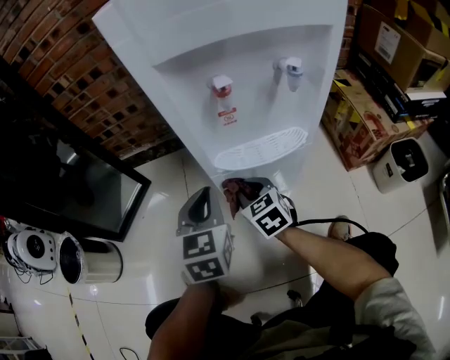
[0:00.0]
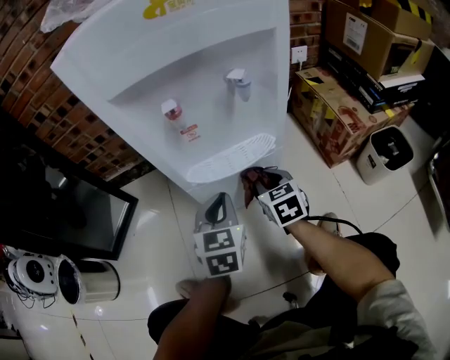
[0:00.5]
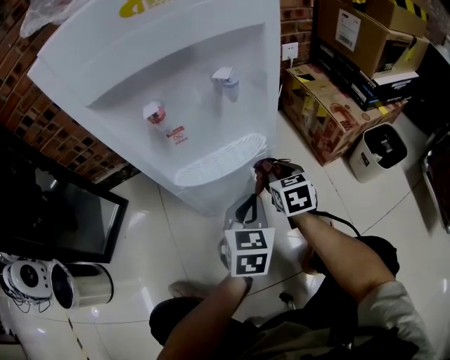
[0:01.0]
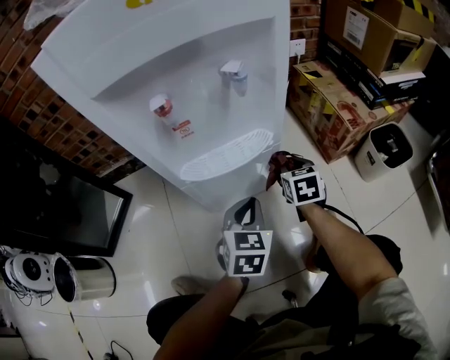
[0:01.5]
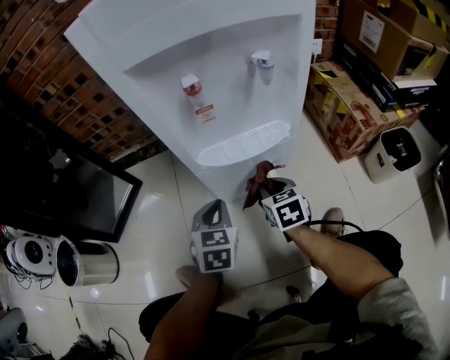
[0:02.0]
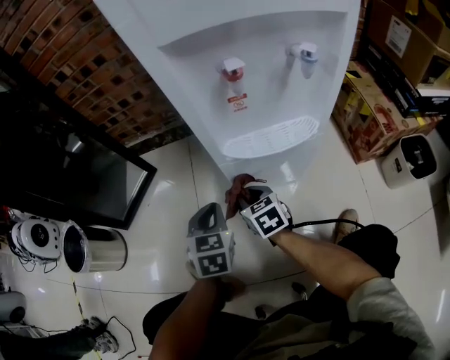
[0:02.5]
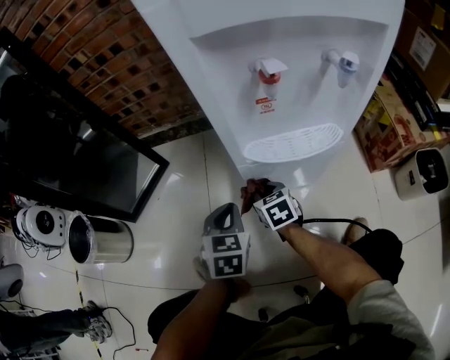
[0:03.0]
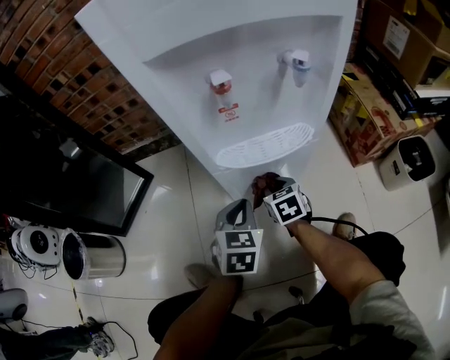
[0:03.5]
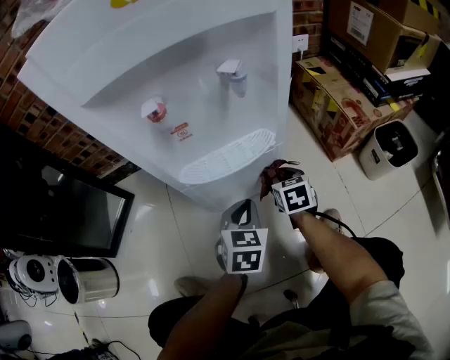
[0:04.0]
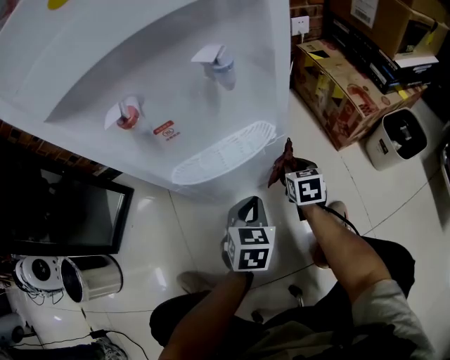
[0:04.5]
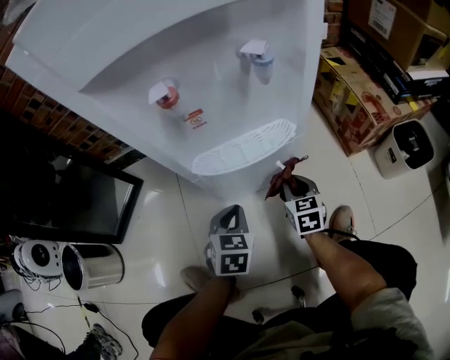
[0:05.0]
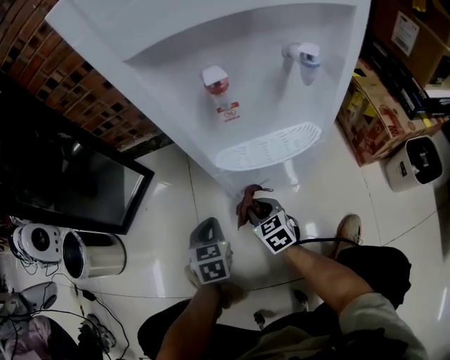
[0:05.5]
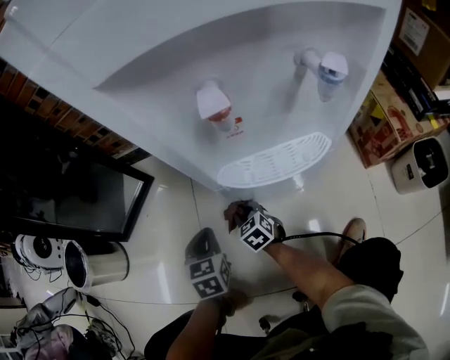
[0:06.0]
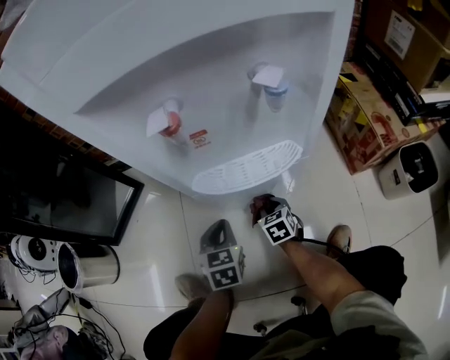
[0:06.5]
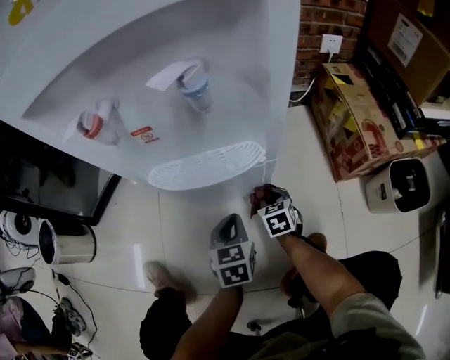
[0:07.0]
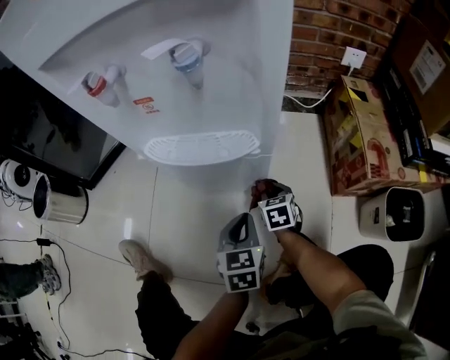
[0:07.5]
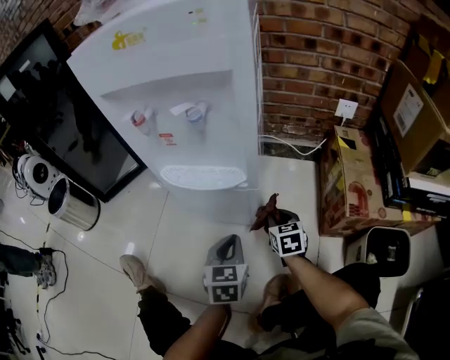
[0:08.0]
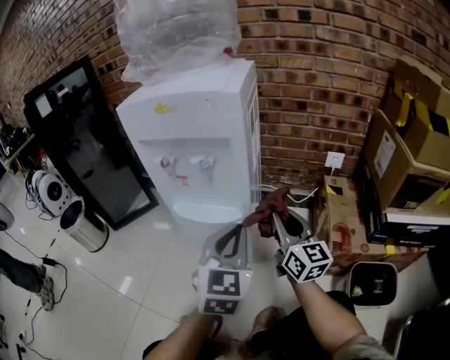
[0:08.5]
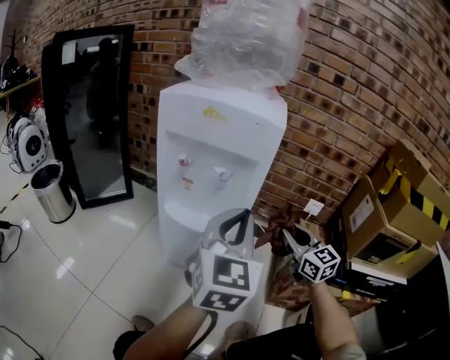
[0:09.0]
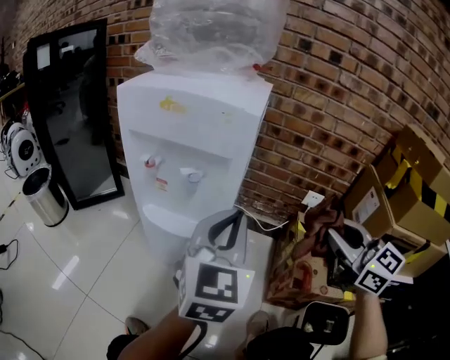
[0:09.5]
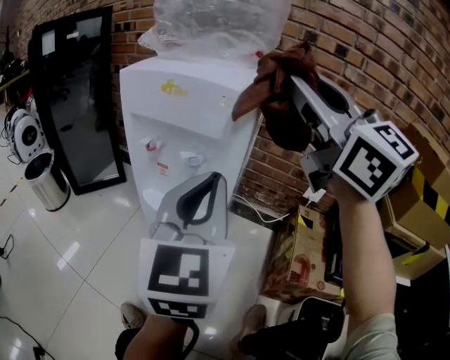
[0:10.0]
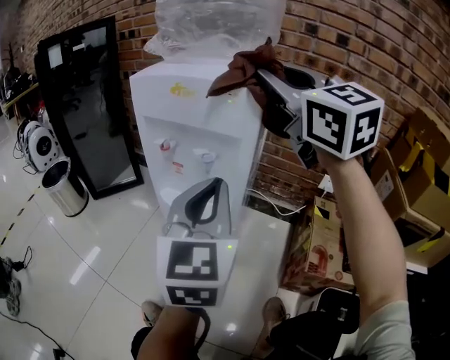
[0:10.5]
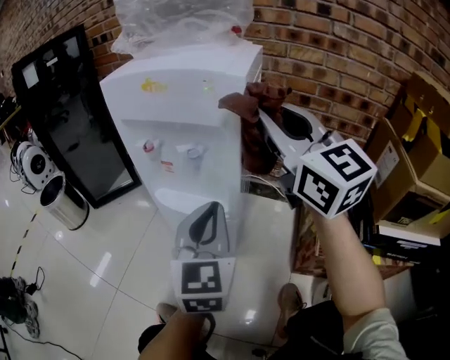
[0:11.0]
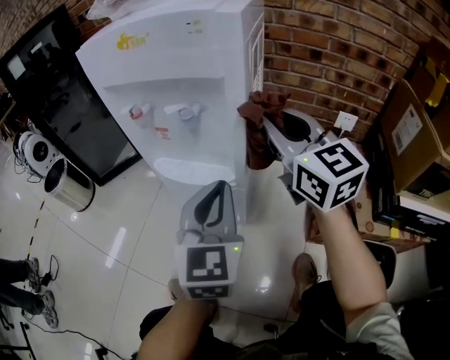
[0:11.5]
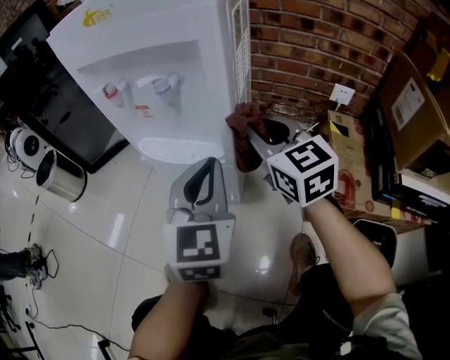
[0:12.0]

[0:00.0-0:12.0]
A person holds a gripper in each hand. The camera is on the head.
0:00.0 to 0:02.0: The right gripper turns by about 20 degrees; the left gripper shifts approximately 10 cm downward.
0:02.0 to 0:04.0: The right gripper moves roughly 10 cm. Meanwhile the left gripper moves some 10 cm.
0:04.0 to 0:06.0: The right gripper changes place by approximately 30 cm, and rotates roughly 40 degrees, while the left gripper changes place by approximately 25 cm, and swivels roughly 30 degrees.
0:06.0 to 0:08.0: Both grippers travel together to the right, roughly 30 cm.
0:08.0 to 0:10.0: The right gripper shifts roughly 70 cm upward, and tilts its fingers about 50 degrees upward. The left gripper is displaced upward by about 40 cm, and tips its fingers upward by roughly 40 degrees.
0:10.0 to 0:12.0: The right gripper goes approximately 35 cm downward, and turns by roughly 30 degrees. Meanwhile the left gripper is displaced downward by about 20 cm.

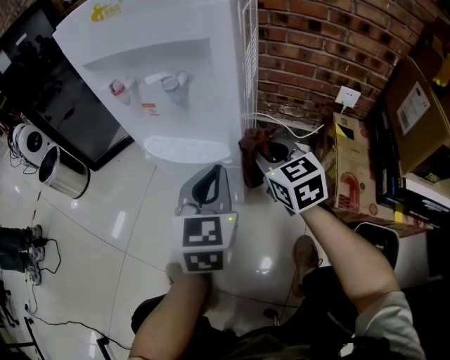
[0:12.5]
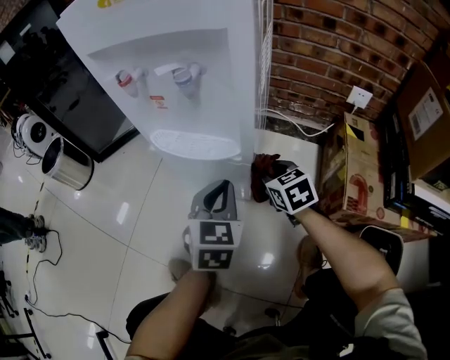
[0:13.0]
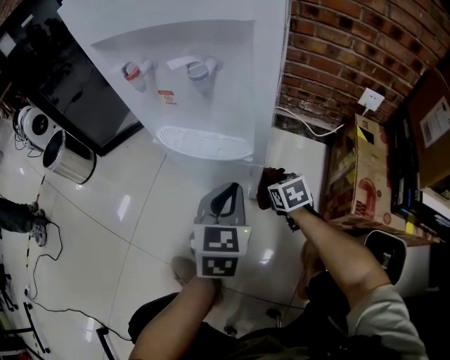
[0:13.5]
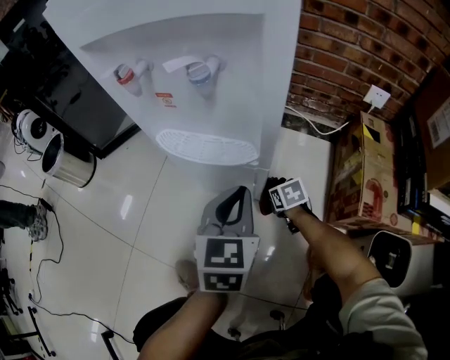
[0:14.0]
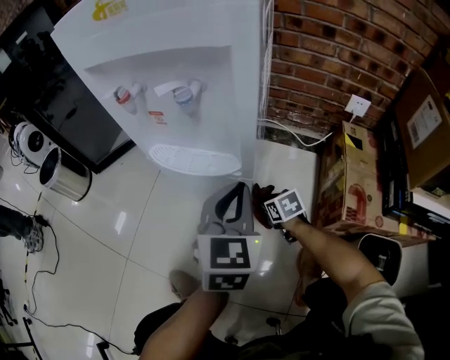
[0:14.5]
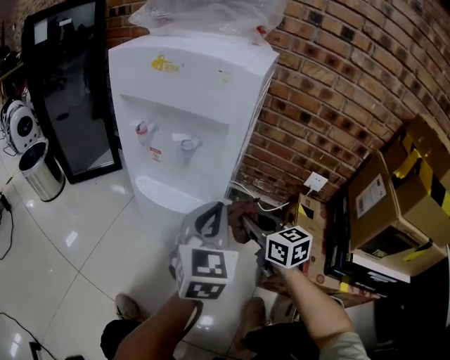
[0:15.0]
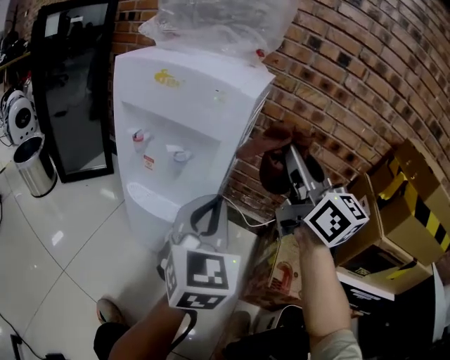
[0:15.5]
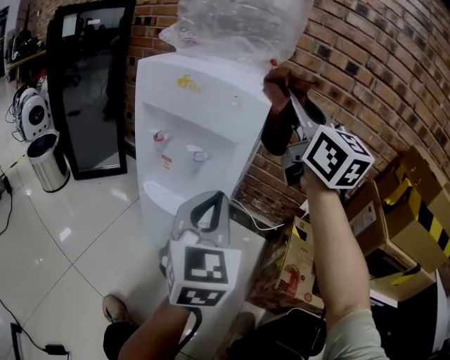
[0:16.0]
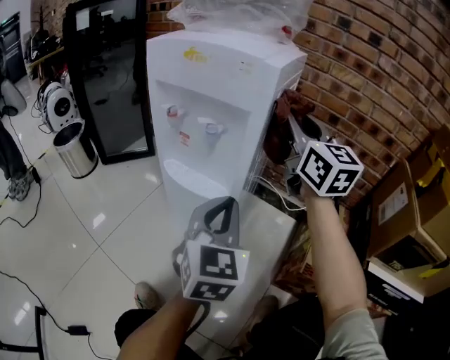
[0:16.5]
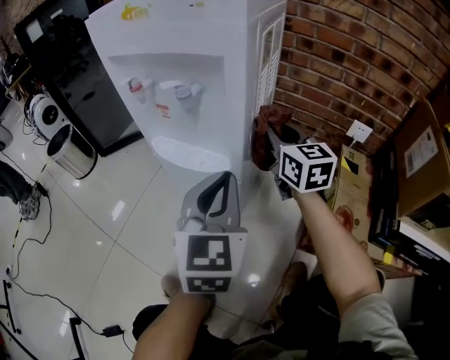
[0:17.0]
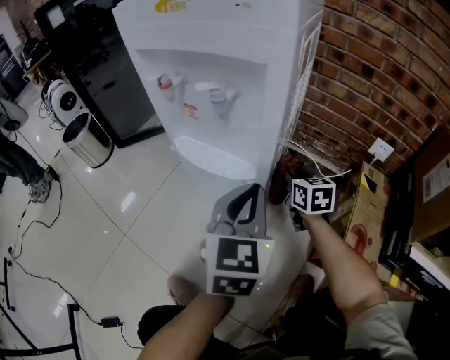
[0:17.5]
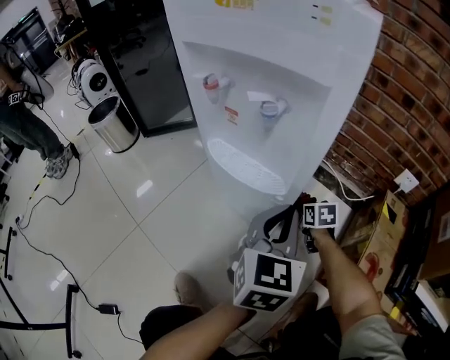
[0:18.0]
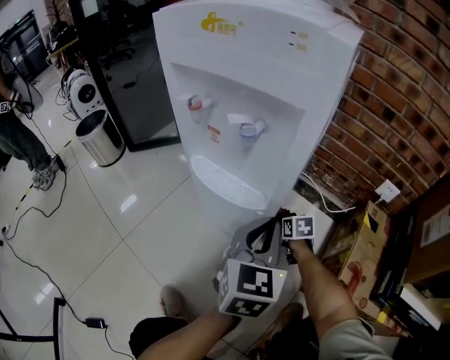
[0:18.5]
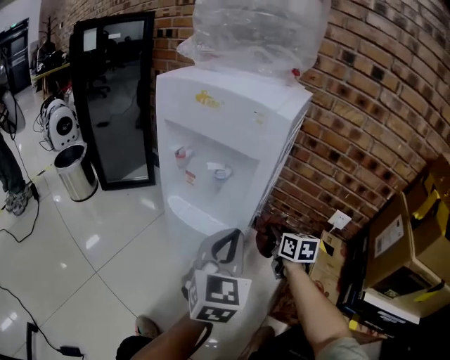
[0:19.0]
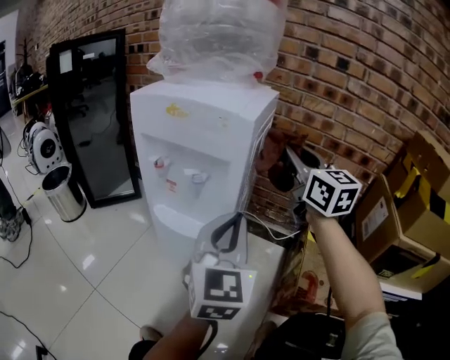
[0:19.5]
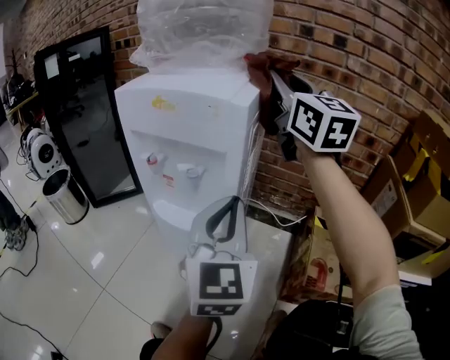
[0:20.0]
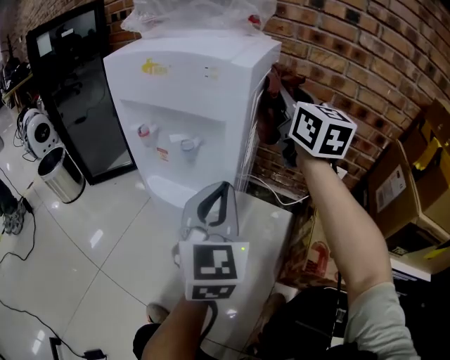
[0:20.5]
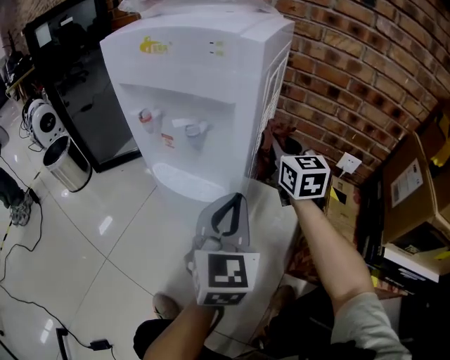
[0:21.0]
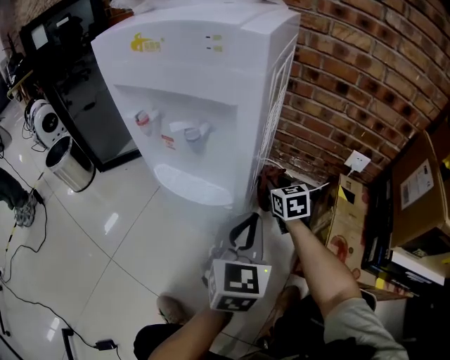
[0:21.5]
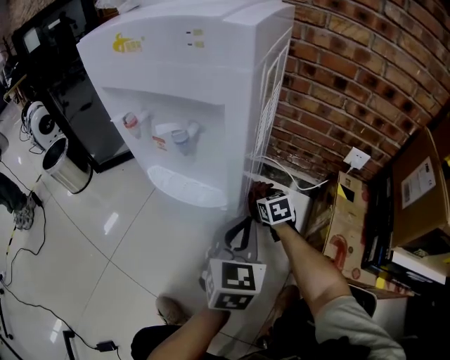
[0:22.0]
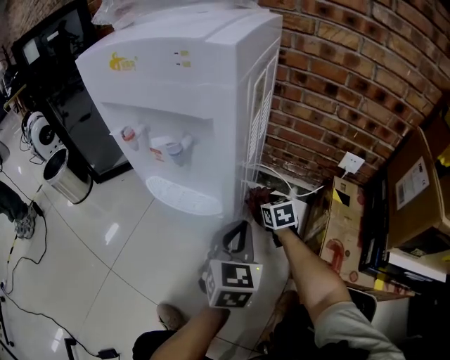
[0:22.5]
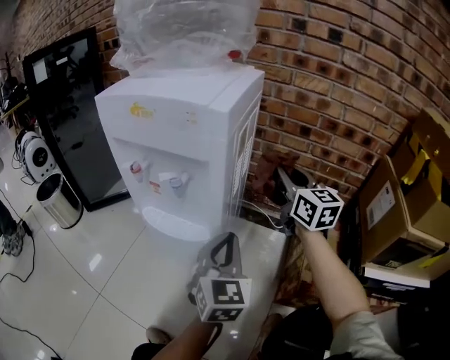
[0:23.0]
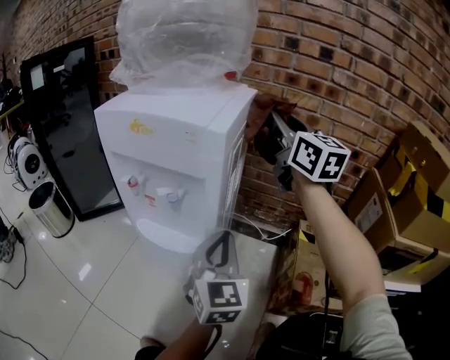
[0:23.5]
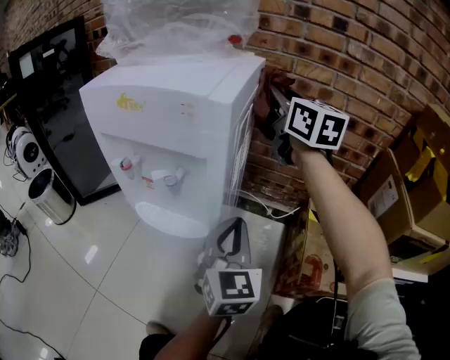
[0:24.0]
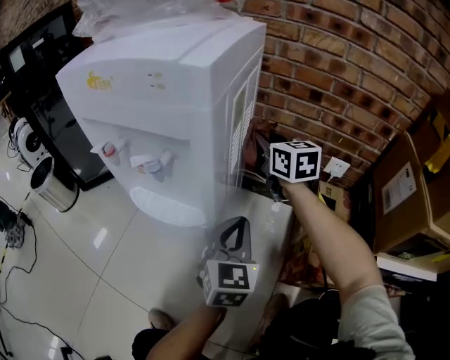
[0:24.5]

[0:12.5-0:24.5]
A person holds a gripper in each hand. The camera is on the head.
0:12.5 to 0:14.5: The right gripper shifts approximately 25 cm downward, and tilts its fingers about 30 degrees downward, while the left gripper moves roughly 10 cm downward and comes back.
0:14.5 to 0:16.5: The left gripper moves upward, about 10 cm, while the right gripper shifts about 50 cm upward, and angles its fingers upward, by roughly 60 degrees.
0:16.5 to 0:18.5: The right gripper is displaced downward by roughly 50 cm, and tilts its fingers approximately 60 degrees downward. Meanwhile the left gripper shifts some 10 cm downward.
0:18.5 to 0:20.5: The right gripper travels upward by approximately 50 cm, and angles its fingers upward, by roughly 60 degrees; the left gripper travels upward by some 15 cm.
0:20.5 to 0:22.5: The left gripper is displaced downward by about 15 cm, and changes its angle by some 20 degrees. Meanwhile the right gripper moves downward, roughly 50 cm, and tilts its fingers about 50 degrees downward.
0:22.5 to 0:24.5: The left gripper goes upward and returns, some 15 cm each way. Meanwhile the right gripper heads upward, covering approximately 25 cm, and turns by approximately 30 degrees.

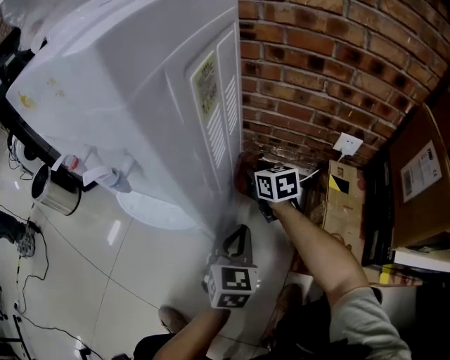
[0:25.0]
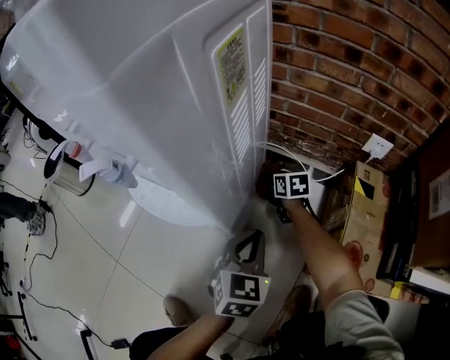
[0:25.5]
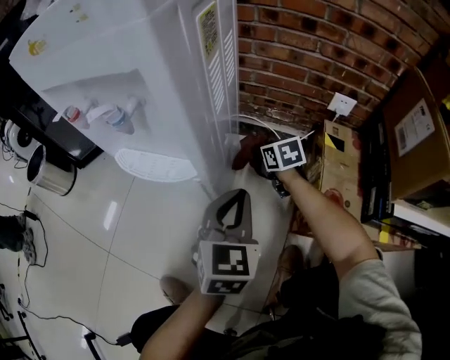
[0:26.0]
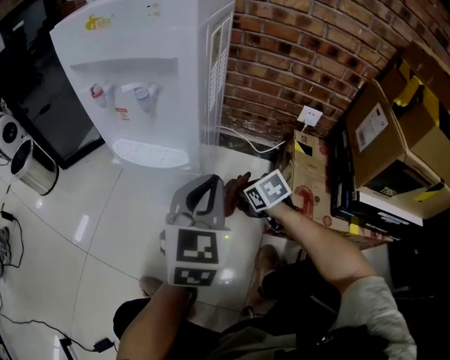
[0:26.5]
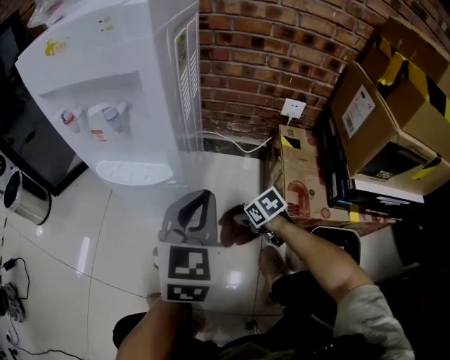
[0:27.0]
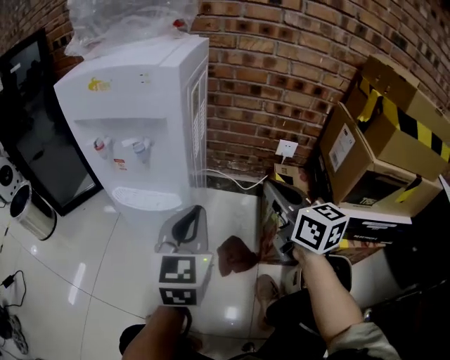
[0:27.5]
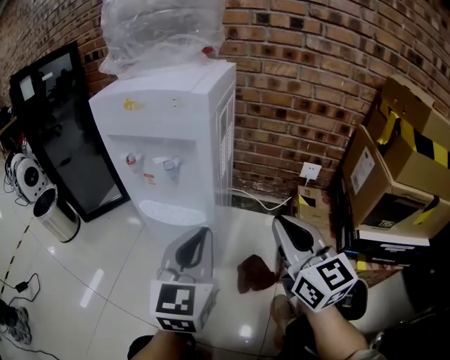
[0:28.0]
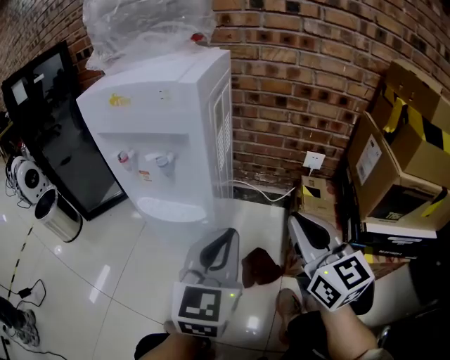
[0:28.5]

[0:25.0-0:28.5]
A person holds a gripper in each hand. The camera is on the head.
0:25.0 to 0:27.0: The right gripper shifts roughly 30 cm backward and downward, tips its fingers downward by approximately 30 degrees, and opens. Meanwhile the left gripper travels upward and backward by about 15 cm.
0:27.0 to 0:28.5: The left gripper goes some 10 cm upward, while the right gripper heads upward, covering approximately 40 cm, tilts its fingers approximately 60 degrees upward, and closes up.
